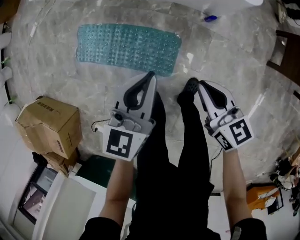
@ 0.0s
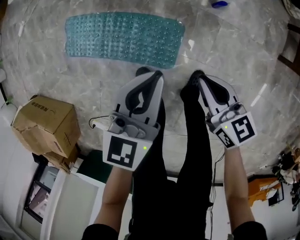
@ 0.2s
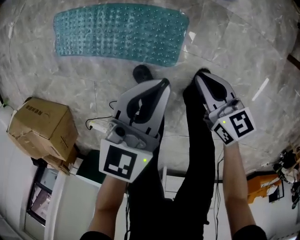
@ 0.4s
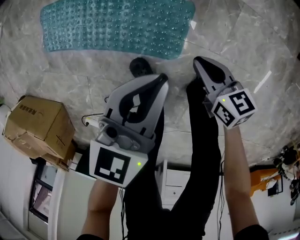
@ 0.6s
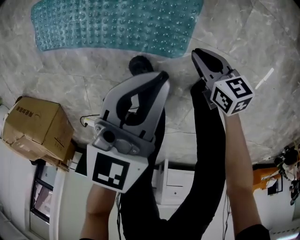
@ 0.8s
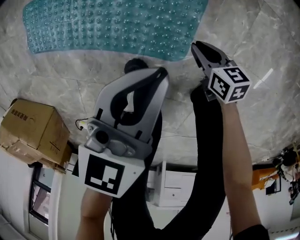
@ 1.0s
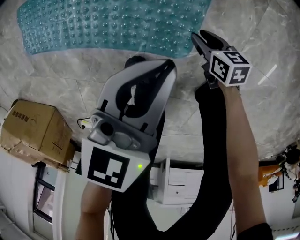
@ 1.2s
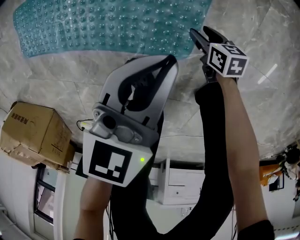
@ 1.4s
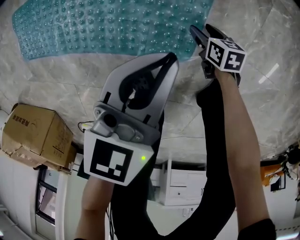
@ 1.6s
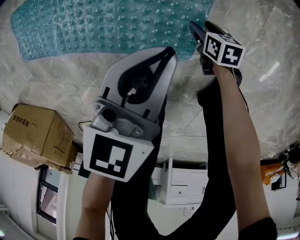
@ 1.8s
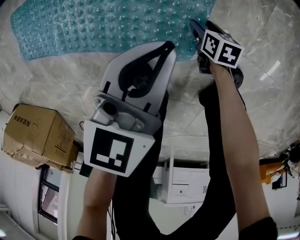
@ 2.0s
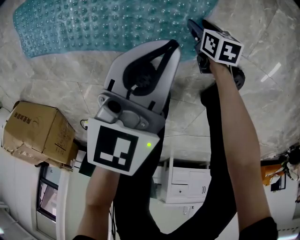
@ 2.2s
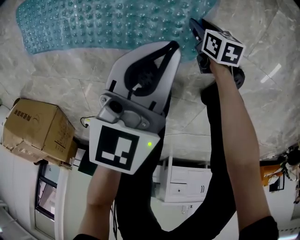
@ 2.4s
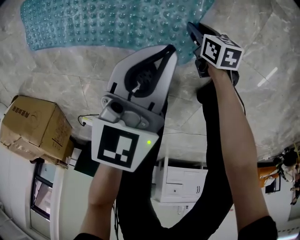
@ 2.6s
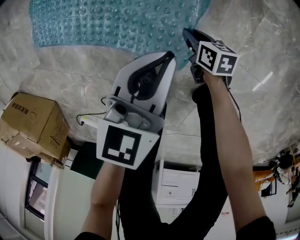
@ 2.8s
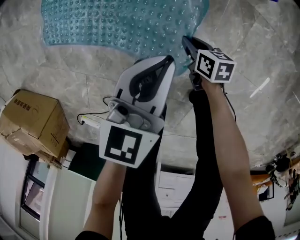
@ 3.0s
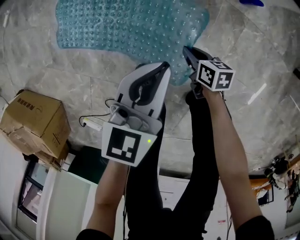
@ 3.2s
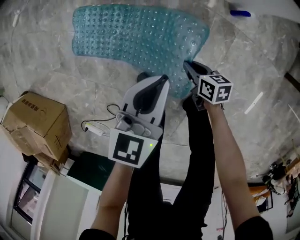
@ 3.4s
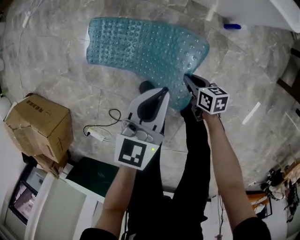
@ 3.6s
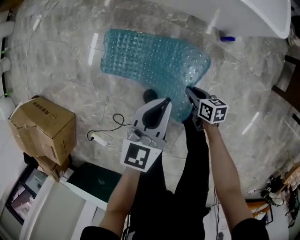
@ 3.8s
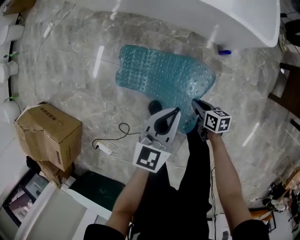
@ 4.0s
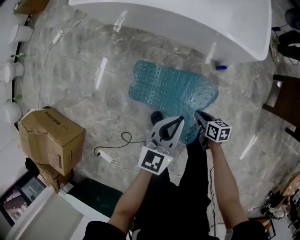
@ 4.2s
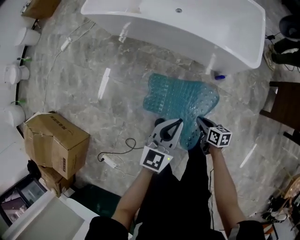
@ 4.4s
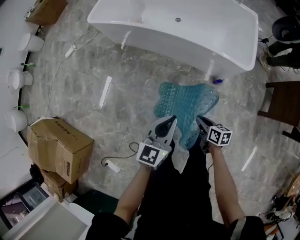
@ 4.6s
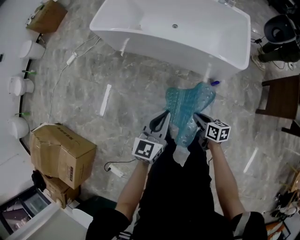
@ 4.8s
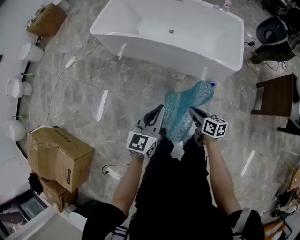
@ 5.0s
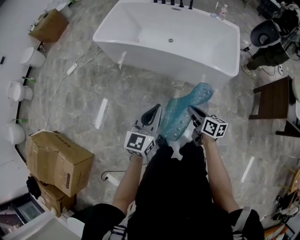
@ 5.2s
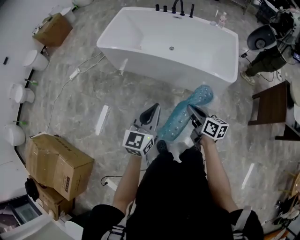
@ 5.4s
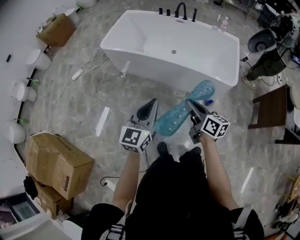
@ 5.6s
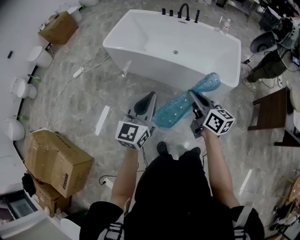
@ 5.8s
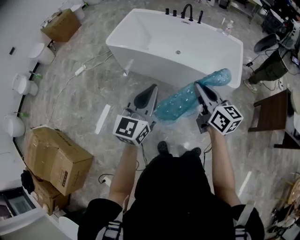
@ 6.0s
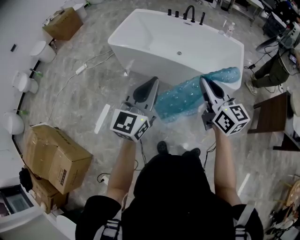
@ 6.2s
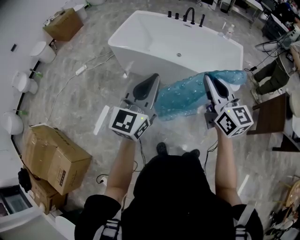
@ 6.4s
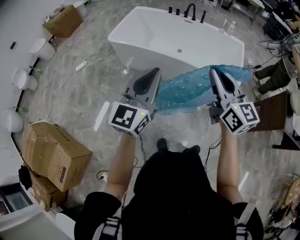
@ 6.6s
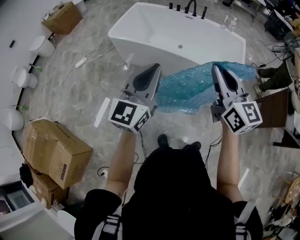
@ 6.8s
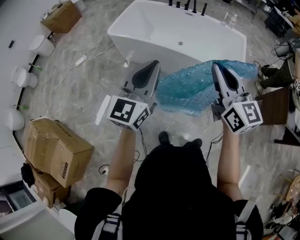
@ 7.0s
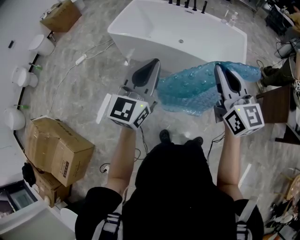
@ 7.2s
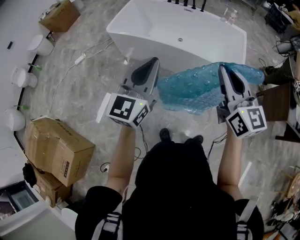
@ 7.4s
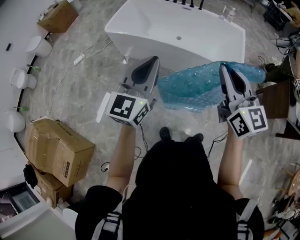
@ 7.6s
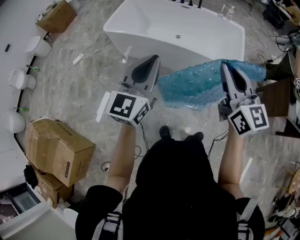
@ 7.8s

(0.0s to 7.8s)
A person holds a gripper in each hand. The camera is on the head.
0.0s - 1.6s: Both grippers travel together downward, roughly 60 cm. The right gripper tilts its fingers approximately 30 degrees downward, and opens up; the left gripper swivels about 20 degrees.
1.6s - 3.2s: The two grippers go approximately 25 cm upward. The right gripper closes its fingers.
3.2s - 4.6s: The two grippers go roughly 50 cm upward.
4.6s - 6.2s: The right gripper goes approximately 40 cm upward, and points its fingers about 40 degrees further upward, while the left gripper moves upward and to the left, about 30 cm, and swivels roughly 20 degrees.
6.2s - 7.8s: The right gripper shifts roughly 5 cm upward.

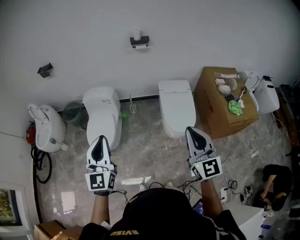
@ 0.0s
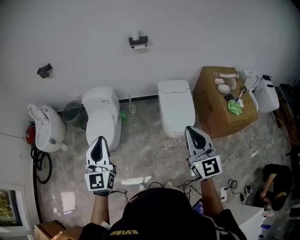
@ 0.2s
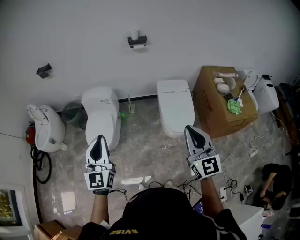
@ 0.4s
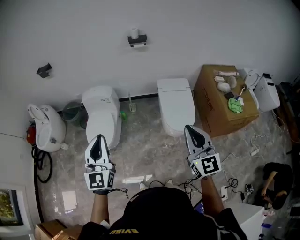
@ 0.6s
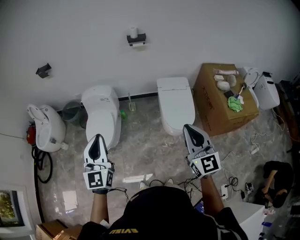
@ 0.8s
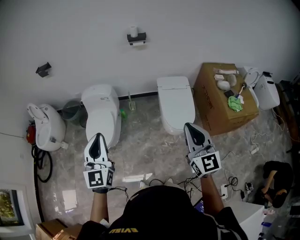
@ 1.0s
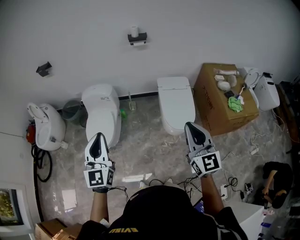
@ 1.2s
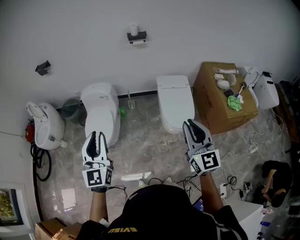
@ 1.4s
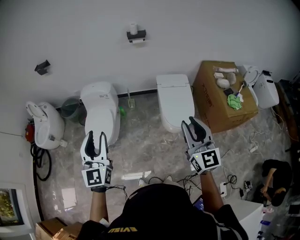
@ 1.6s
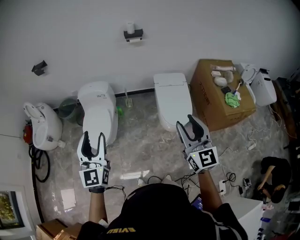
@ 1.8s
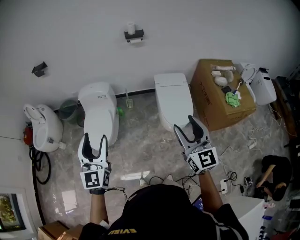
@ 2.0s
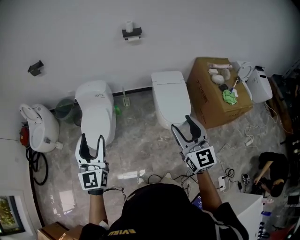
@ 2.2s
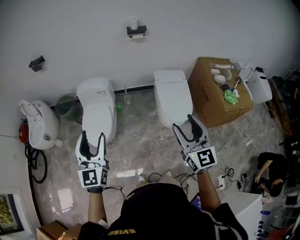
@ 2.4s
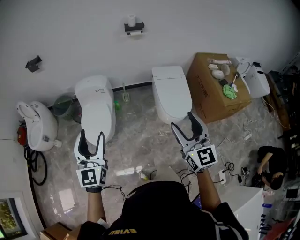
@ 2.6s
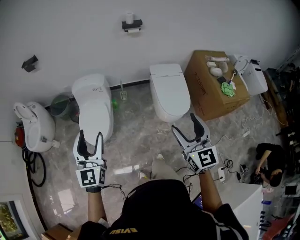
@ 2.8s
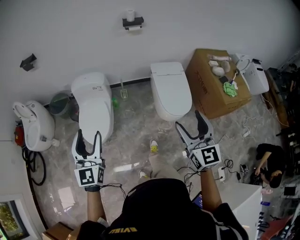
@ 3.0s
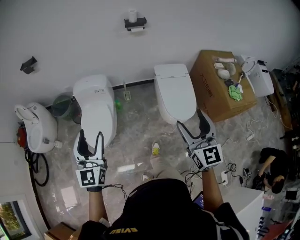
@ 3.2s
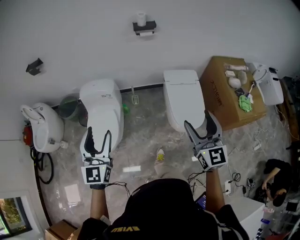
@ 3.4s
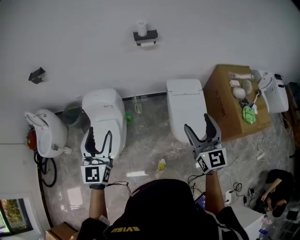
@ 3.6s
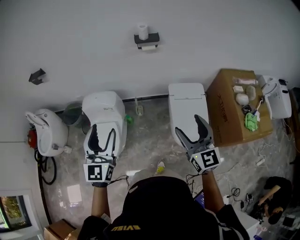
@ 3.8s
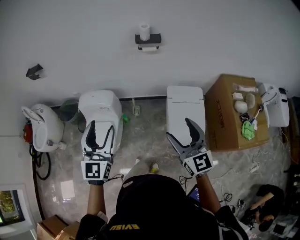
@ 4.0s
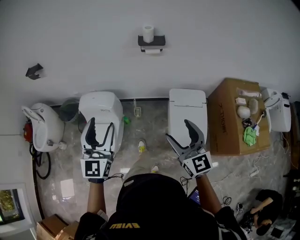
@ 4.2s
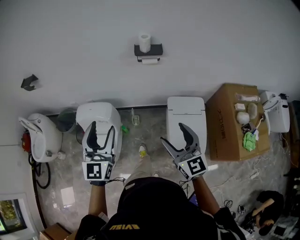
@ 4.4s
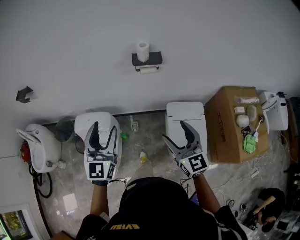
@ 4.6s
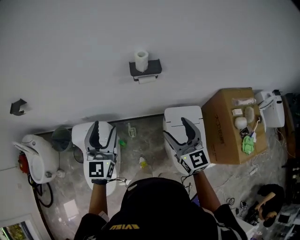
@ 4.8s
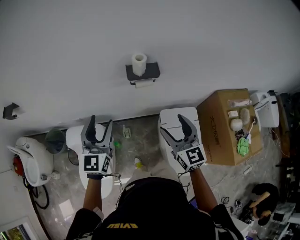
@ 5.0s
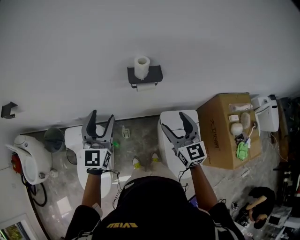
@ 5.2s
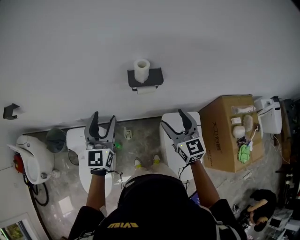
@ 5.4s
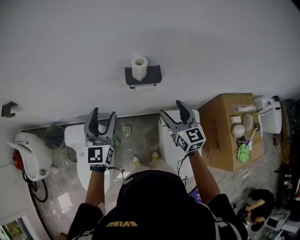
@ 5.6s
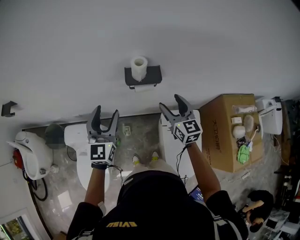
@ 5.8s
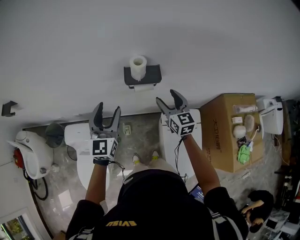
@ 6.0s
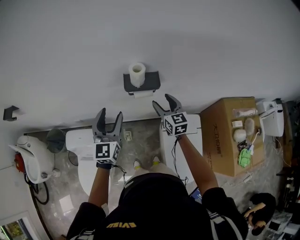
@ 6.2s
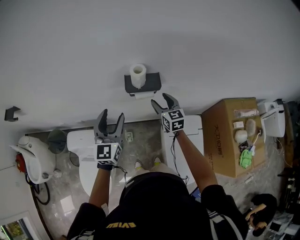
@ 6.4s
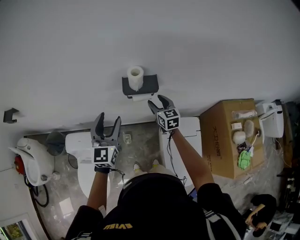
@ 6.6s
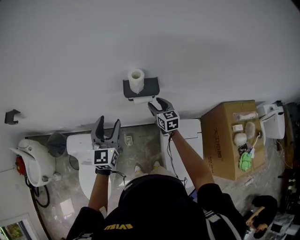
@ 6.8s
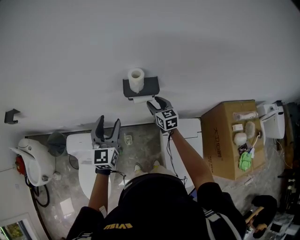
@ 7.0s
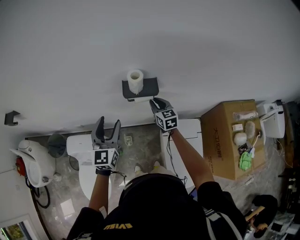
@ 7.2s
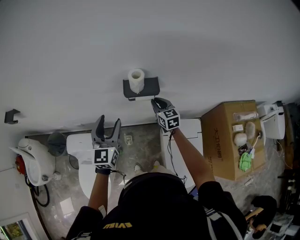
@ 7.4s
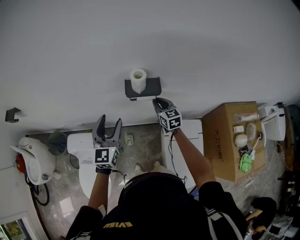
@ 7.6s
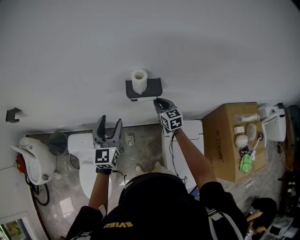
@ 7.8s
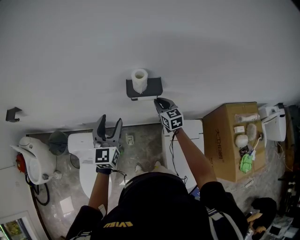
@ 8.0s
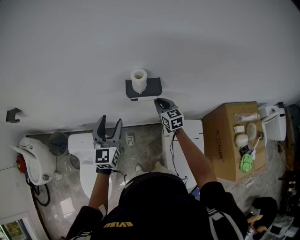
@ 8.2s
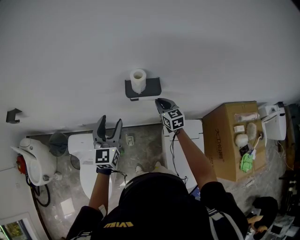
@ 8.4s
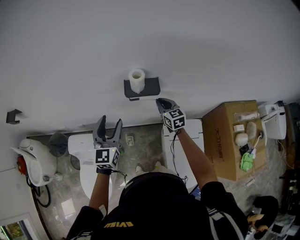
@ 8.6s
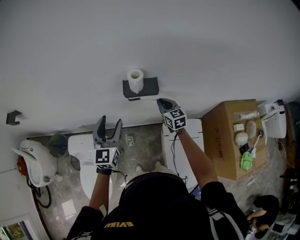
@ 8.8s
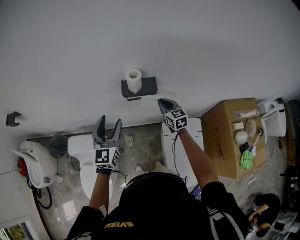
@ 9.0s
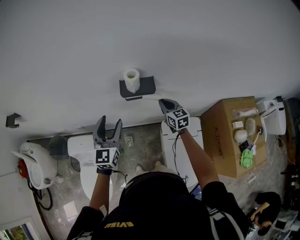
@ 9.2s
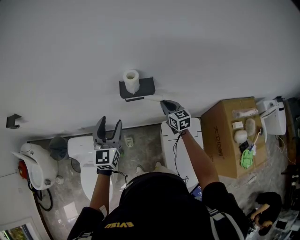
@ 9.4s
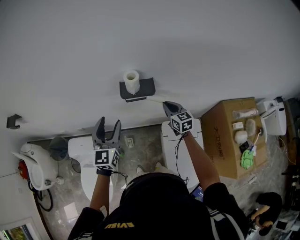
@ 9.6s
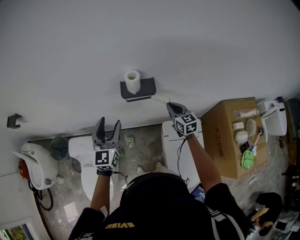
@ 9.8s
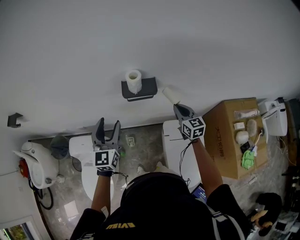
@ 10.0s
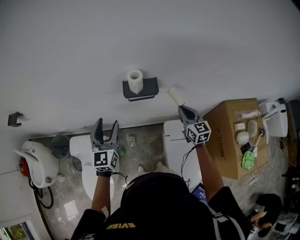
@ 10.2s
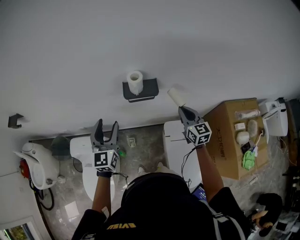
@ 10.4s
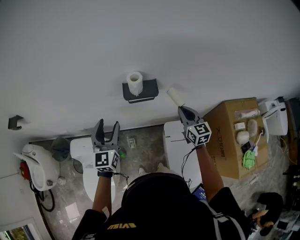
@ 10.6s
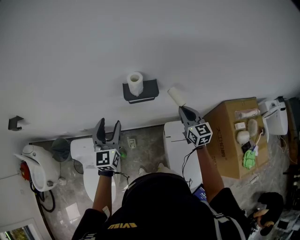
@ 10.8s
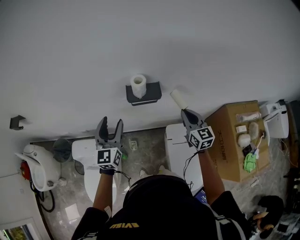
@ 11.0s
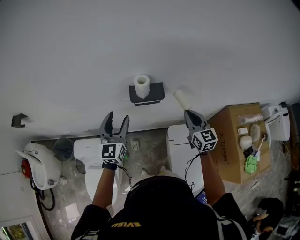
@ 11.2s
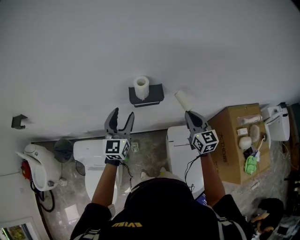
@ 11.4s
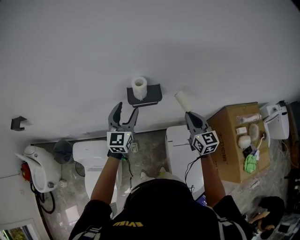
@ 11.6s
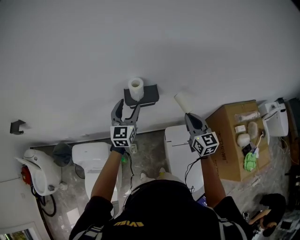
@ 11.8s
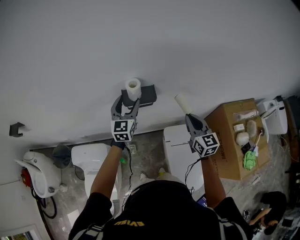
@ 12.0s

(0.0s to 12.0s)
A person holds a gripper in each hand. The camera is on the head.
0.0s - 1.6s: The left gripper opens.
1.6s - 3.0s: The two grippers go roughly 10 cm to the left. The left gripper opens; the right gripper opens.
3.0s - 4.4s: Both grippers move forward, about 40 cm.
4.4s - 6.0s: Both grippers move forward, about 35 cm.
6.0s - 7.6s: The right gripper heads downward and forward, covering some 10 cm, and closes up.
7.6s - 9.0s: The grippers stay close to where they were, moving slightly.
9.0s - 10.4s: The right gripper goes about 10 cm backward, to the right and upward.
10.4s - 12.0s: The left gripper heads forward and to the right, covering approximately 15 cm; the right gripper goes roughly 5 cm upward.

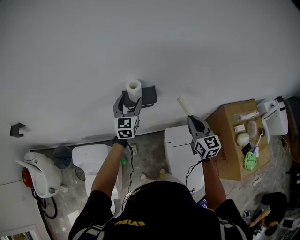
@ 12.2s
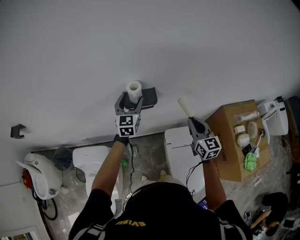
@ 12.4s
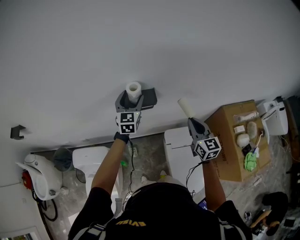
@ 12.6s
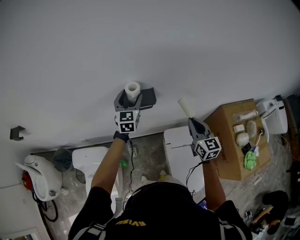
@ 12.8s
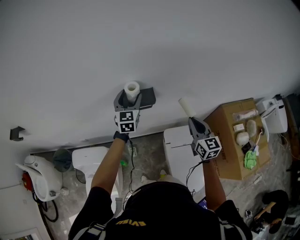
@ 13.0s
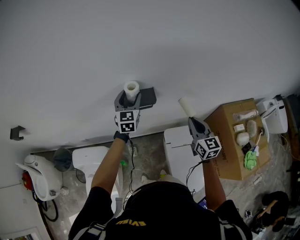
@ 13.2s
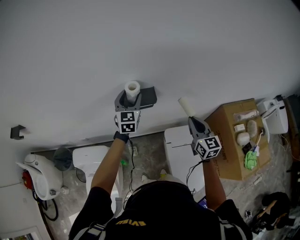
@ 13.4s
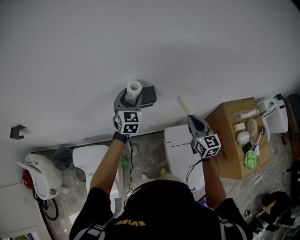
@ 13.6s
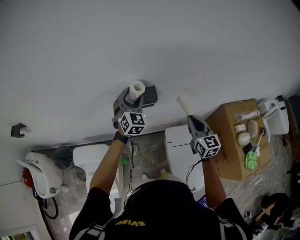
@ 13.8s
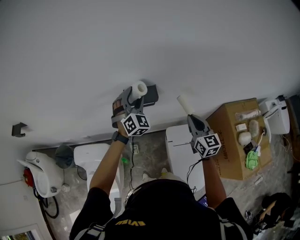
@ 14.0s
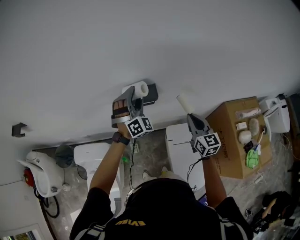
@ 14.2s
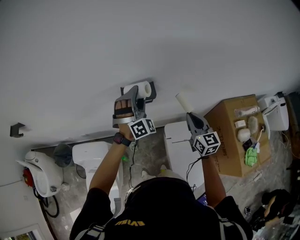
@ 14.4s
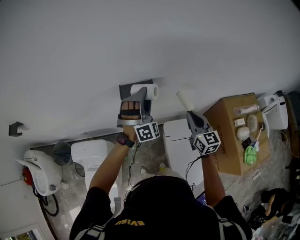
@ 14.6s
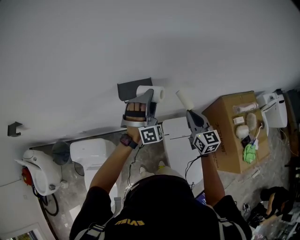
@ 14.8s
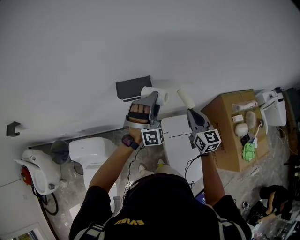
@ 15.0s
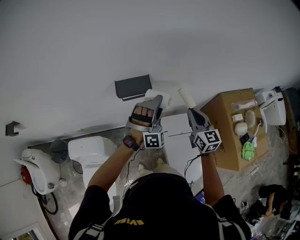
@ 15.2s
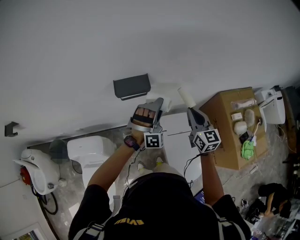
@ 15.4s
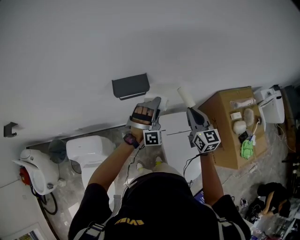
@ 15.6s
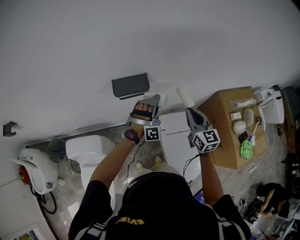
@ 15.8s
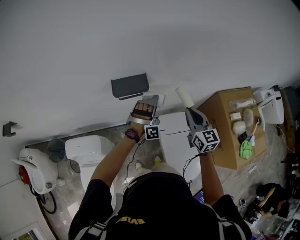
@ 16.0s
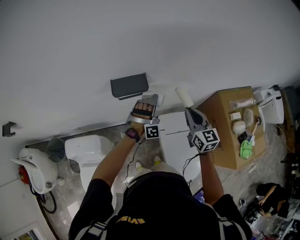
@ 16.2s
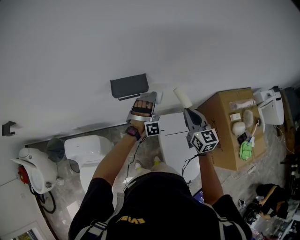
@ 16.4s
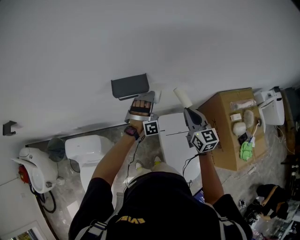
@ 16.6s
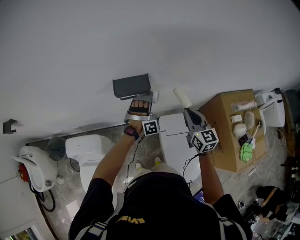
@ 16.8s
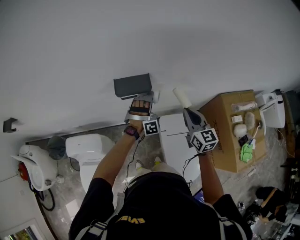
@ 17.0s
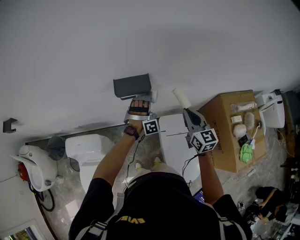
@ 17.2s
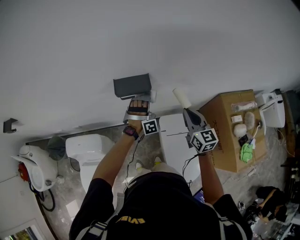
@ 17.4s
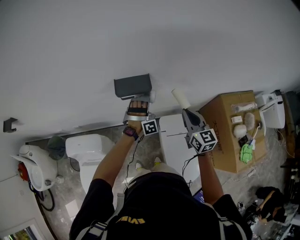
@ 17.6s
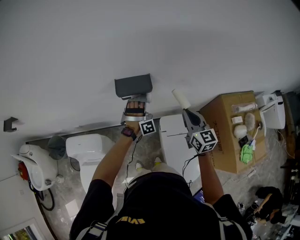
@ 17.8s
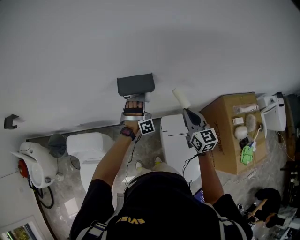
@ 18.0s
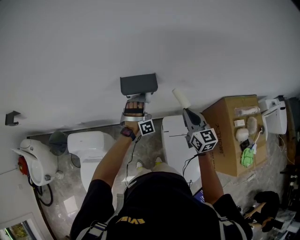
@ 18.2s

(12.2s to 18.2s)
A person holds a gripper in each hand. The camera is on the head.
12.2s - 13.8s: The left gripper turns by about 30 degrees.
13.8s - 15.2s: The left gripper moves to the right and backward, approximately 15 cm, and rotates around the line of its fingers by roughly 50 degrees, clockwise from behind.
15.2s - 16.6s: The left gripper goes about 15 cm downward and forward.
16.6s - 18.2s: The left gripper is displaced to the left by approximately 10 cm.
